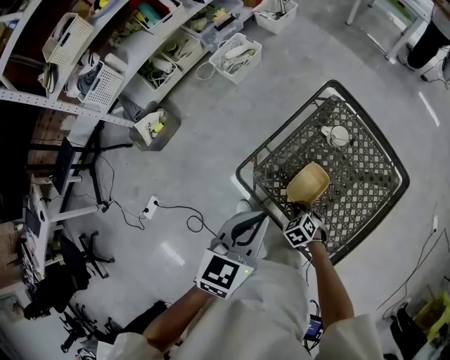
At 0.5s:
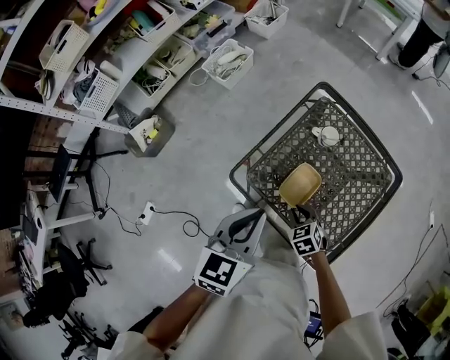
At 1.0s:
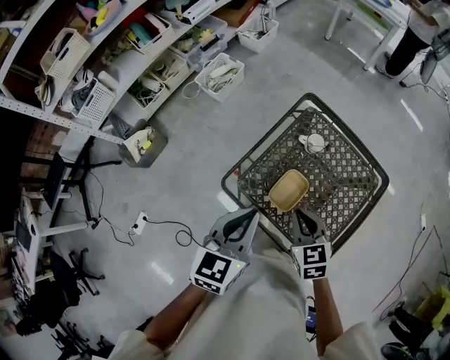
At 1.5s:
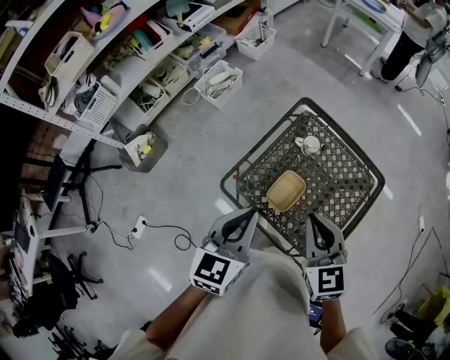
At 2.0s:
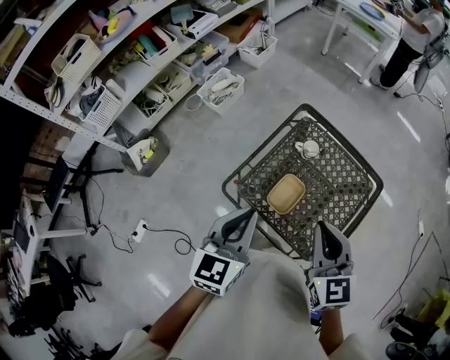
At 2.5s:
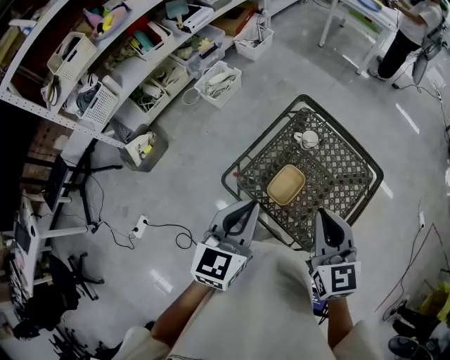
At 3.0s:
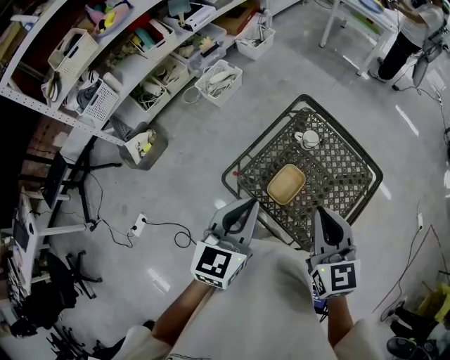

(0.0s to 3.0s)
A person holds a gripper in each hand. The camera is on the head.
0.0s - 1.5s: The left gripper heads upward, covering some 5 cm; the right gripper goes about 35 cm upward, and angles its fingers upward, by roughly 40 degrees.
1.5s - 3.0s: The grippers make only small movements.

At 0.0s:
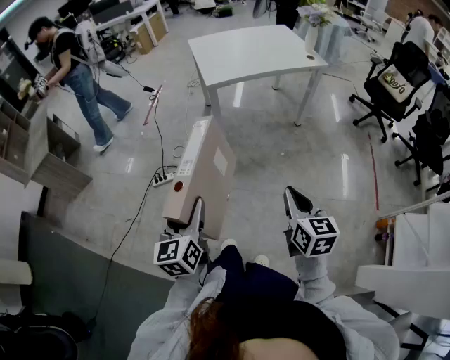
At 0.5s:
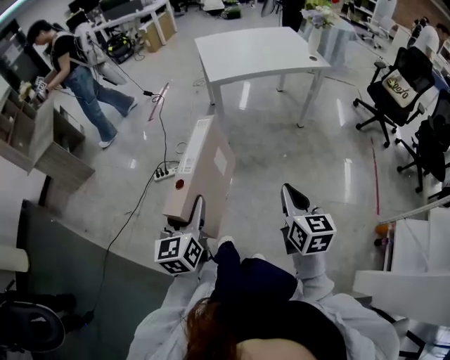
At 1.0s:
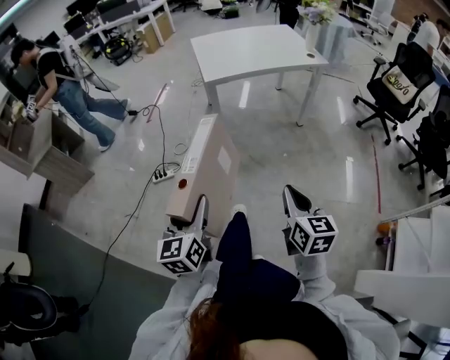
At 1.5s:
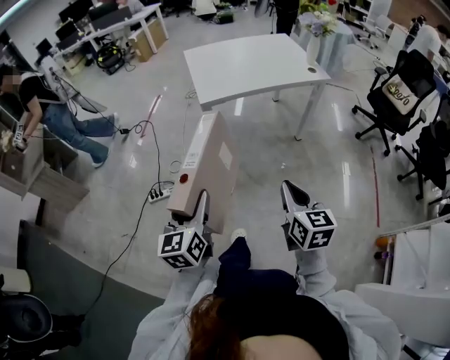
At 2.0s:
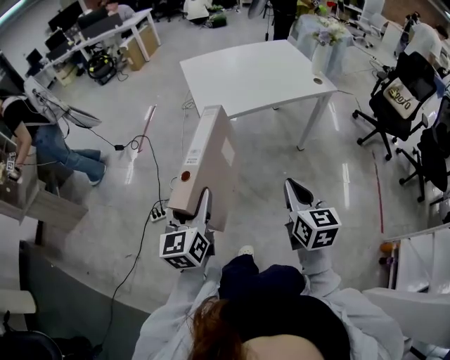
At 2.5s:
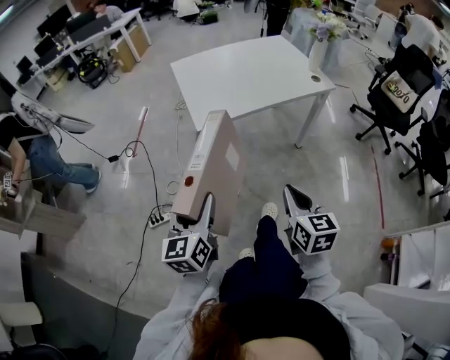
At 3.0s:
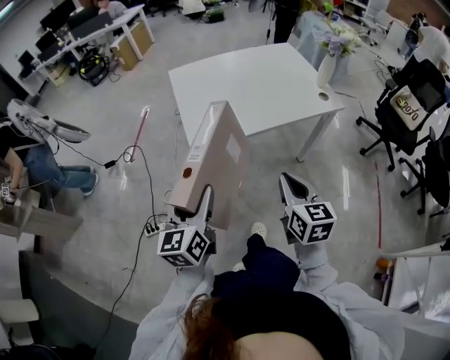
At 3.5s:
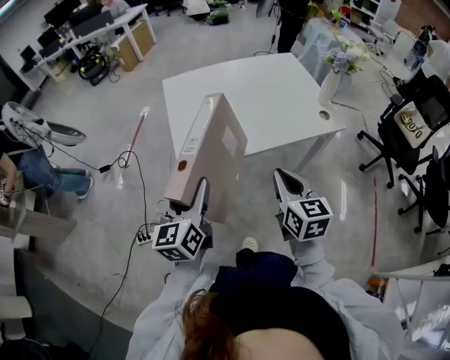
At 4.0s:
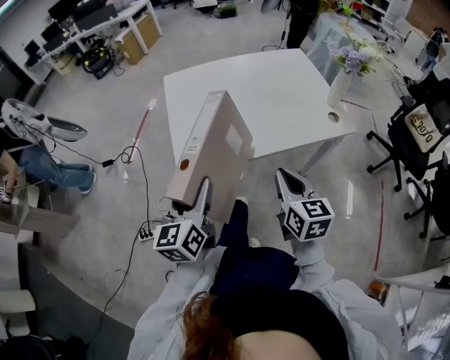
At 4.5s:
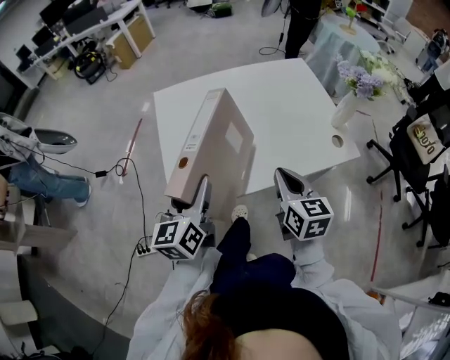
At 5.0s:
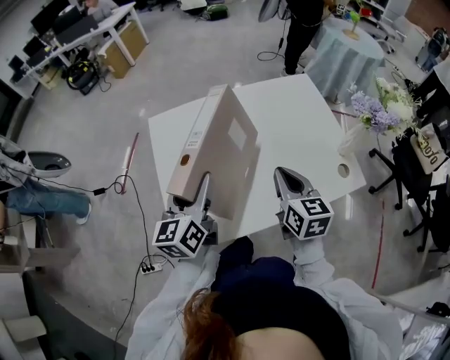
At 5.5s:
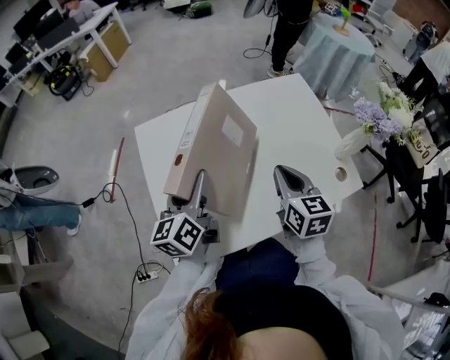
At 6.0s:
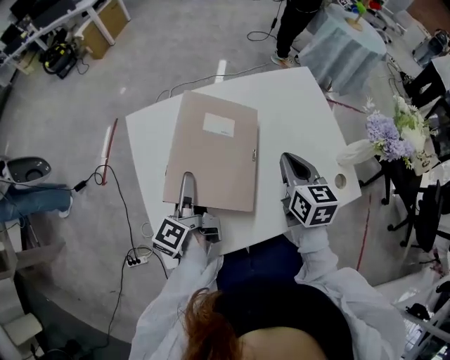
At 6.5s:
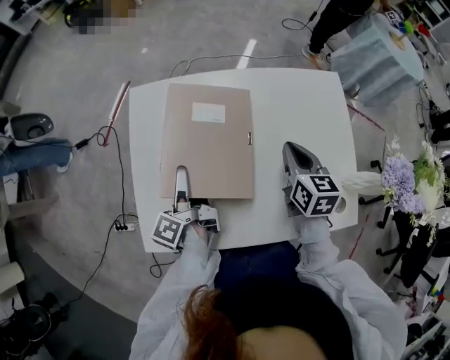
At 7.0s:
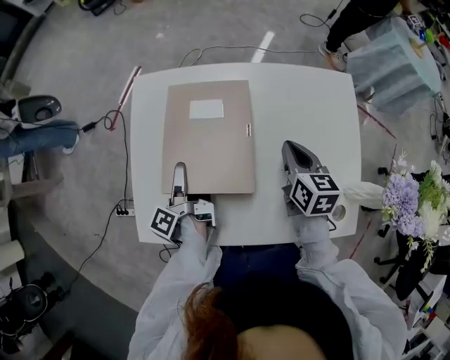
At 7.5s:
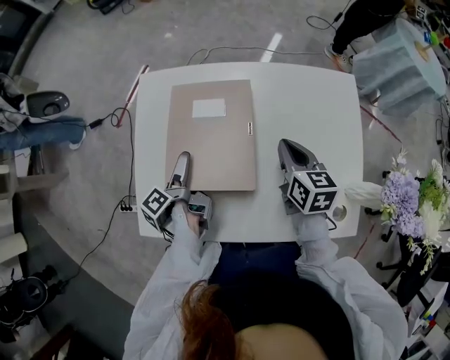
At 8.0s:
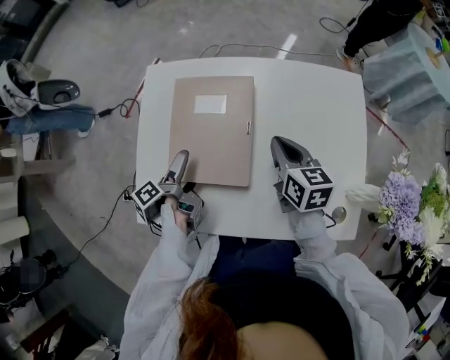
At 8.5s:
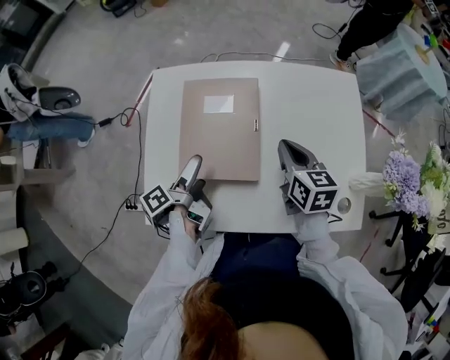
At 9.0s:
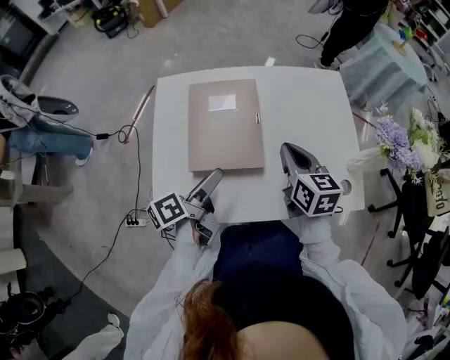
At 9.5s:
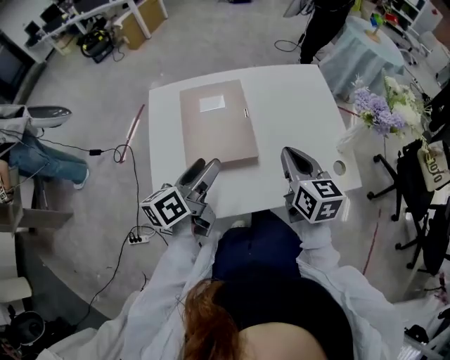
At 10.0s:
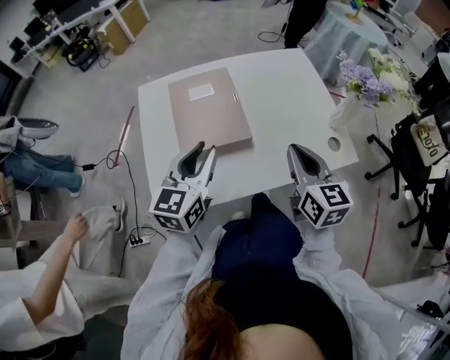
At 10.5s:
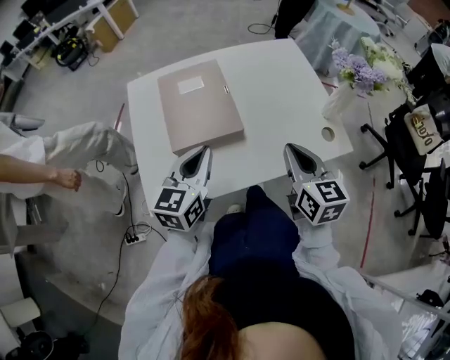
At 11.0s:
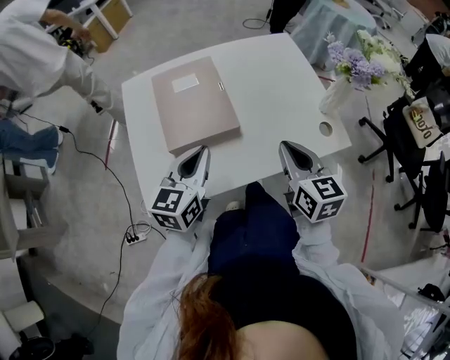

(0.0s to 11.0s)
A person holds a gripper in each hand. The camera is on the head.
0.0s - 2.0s: The two grippers go roughly 30 cm forward.
2.0s - 3.5s: Both grippers move forward, roughly 30 cm.
3.5s - 5.5s: The two grippers go some 40 cm forward.
5.5s - 7.5s: The left gripper shifts about 15 cm downward, rolls counterclockwise, seen from behind, by approximately 60 degrees, and opens up, while the right gripper ends up about 20 cm from where it was, and changes its angle by roughly 20 degrees.
7.5s - 9.0s: The two grippers go about 15 cm backward and upward. The left gripper changes its angle by about 40 degrees.
9.0s - 11.0s: The left gripper moves to the right, approximately 5 cm, twists about 60 degrees clockwise, seen from behind, and closes its fingers. The right gripper shifts some 15 cm backward and to the right.

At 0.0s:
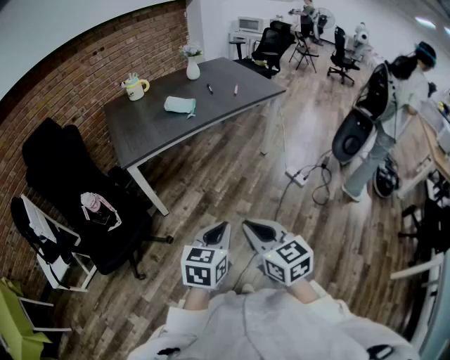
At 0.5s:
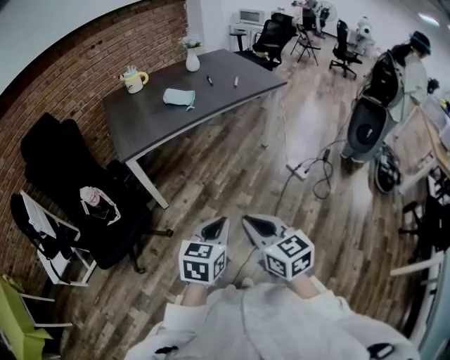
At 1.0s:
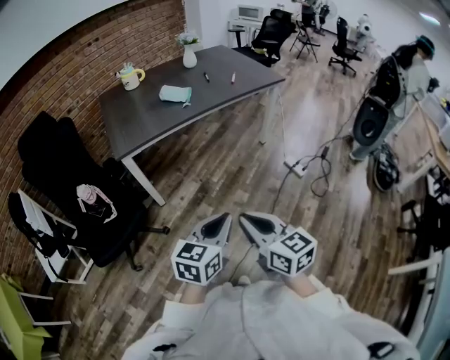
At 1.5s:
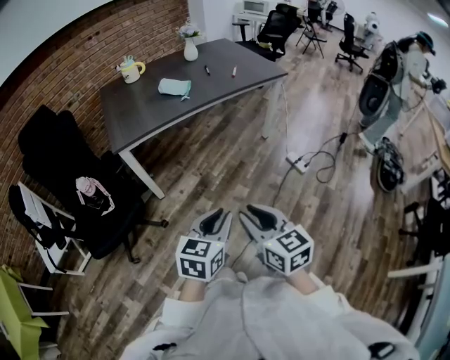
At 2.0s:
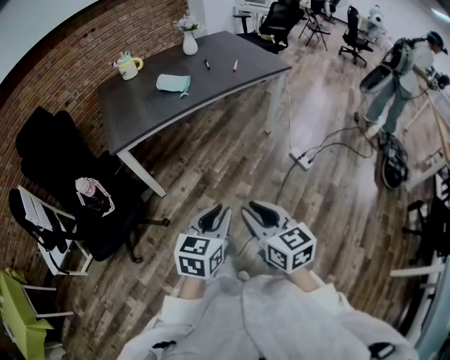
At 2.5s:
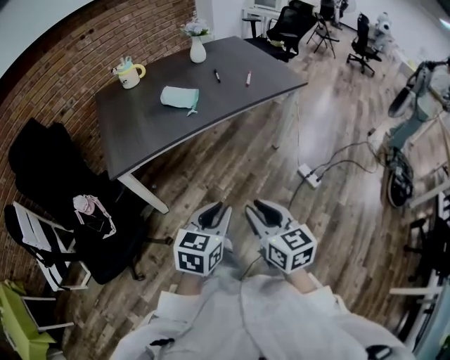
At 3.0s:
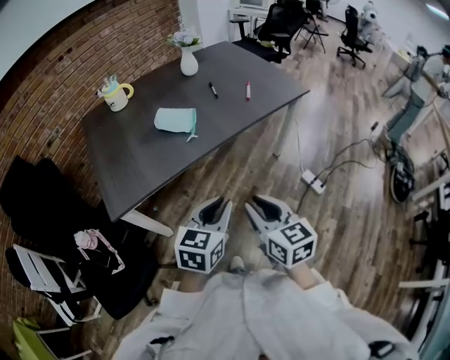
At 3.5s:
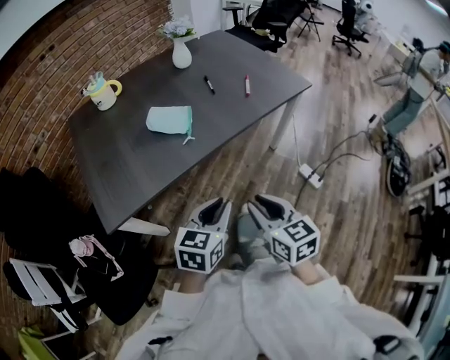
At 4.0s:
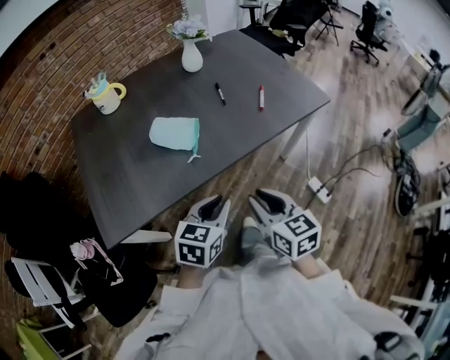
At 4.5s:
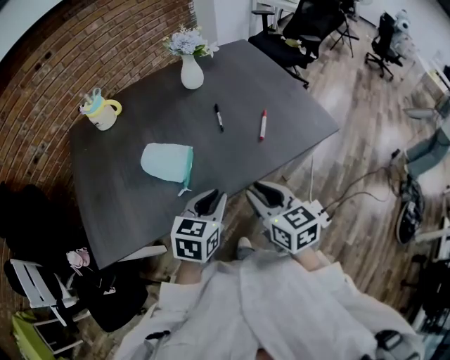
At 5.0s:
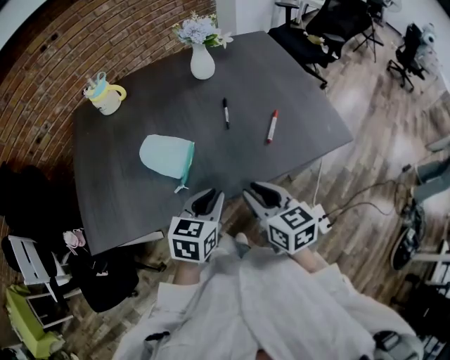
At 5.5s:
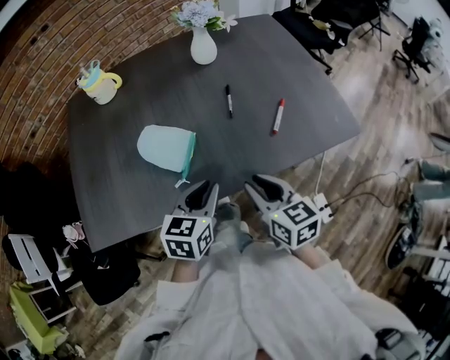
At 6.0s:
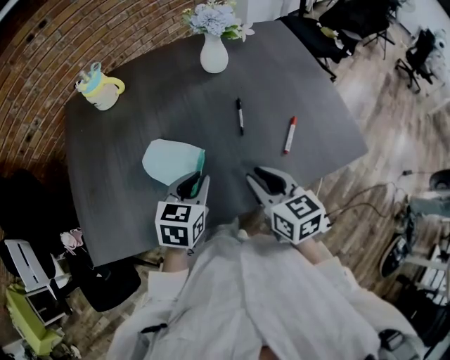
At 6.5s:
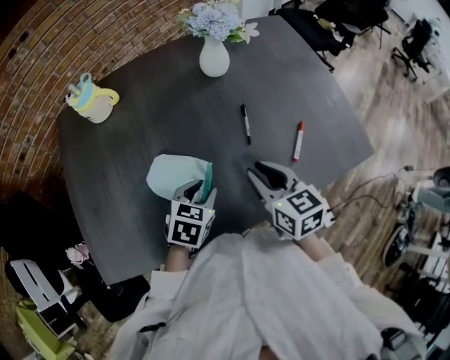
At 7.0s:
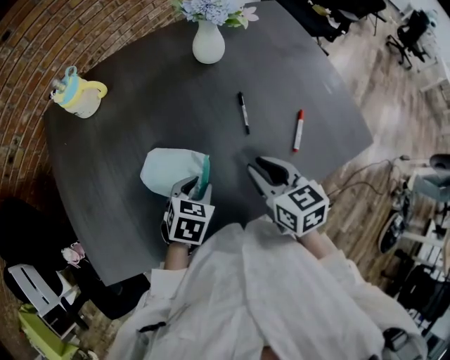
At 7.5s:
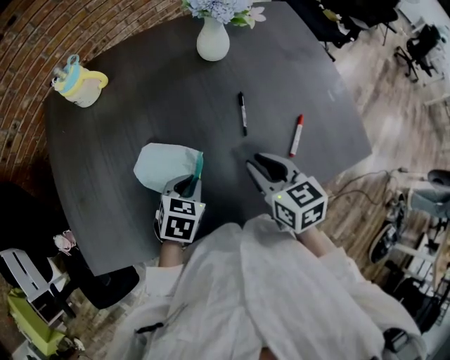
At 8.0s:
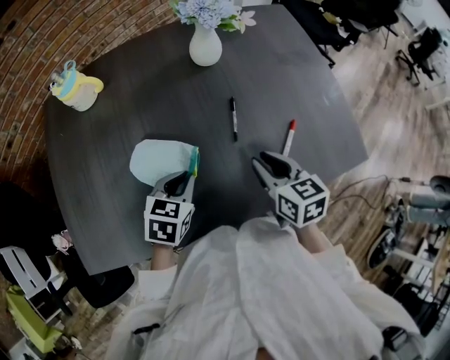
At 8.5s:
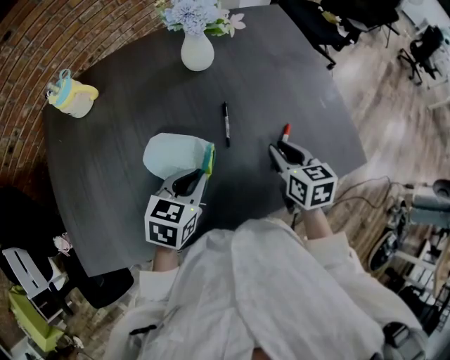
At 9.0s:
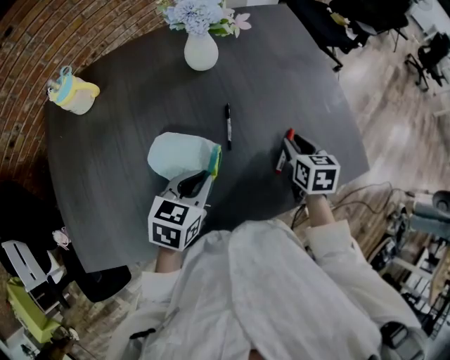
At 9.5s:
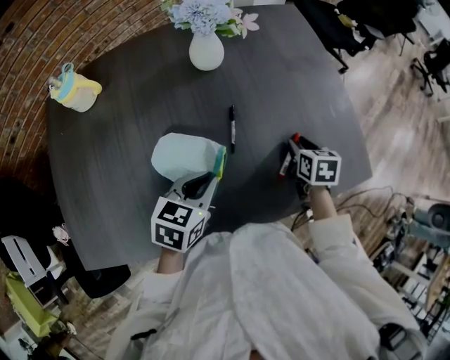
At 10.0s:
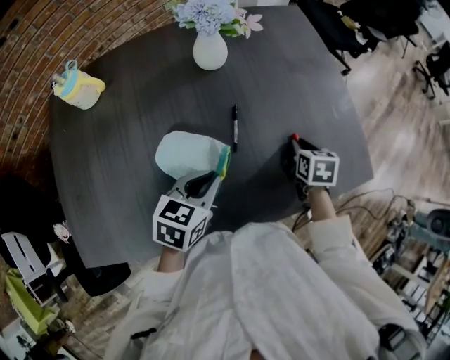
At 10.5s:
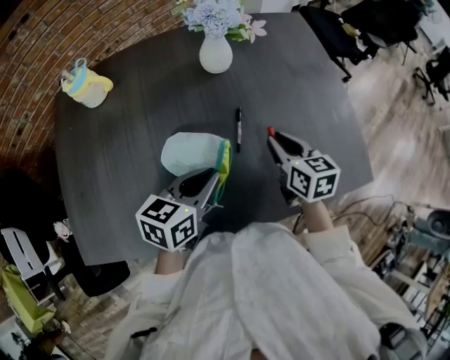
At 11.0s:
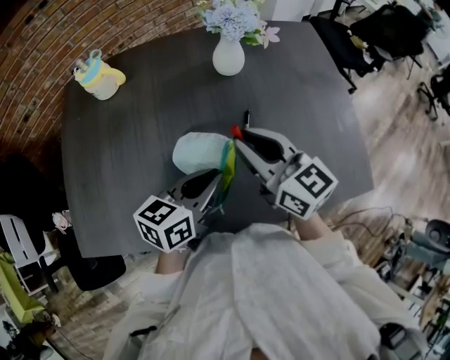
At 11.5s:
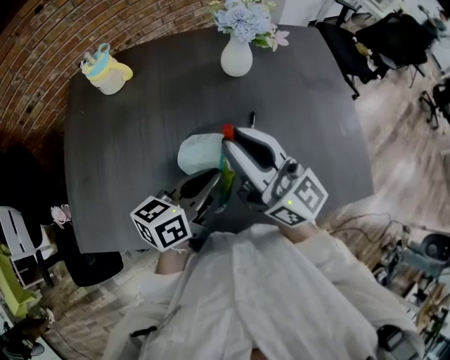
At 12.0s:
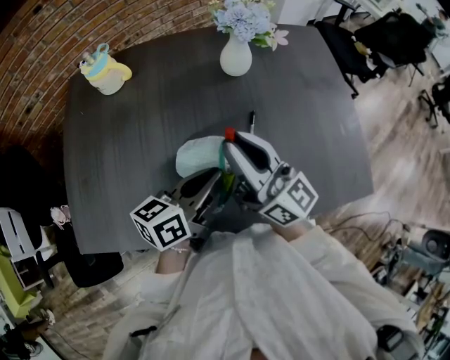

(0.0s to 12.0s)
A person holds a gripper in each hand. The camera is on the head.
0.0s - 2.0s: The left gripper goes roughly 5 cm forward, while the right gripper moves forward and to the right, approximately 10 cm.
2.0s - 4.0s: The two grippers travel together, forward, about 50 cm.
4.0s - 6.0s: Both grippers move forward, approximately 30 cm.
6.0s - 8.0s: The left gripper moves forward, roughly 5 cm. The right gripper travels forward by some 10 cm.
8.0s - 10.0s: The right gripper shifts approximately 20 cm to the right, forward and downward, and changes its angle by some 30 degrees. Meanwhile the left gripper goes roughly 10 cm to the right.
10.0s - 12.0s: The left gripper travels upward by some 10 cm, and swivels approximately 40 degrees, while the right gripper shifts by roughly 40 cm, and tilts its fingers some 70 degrees upward.

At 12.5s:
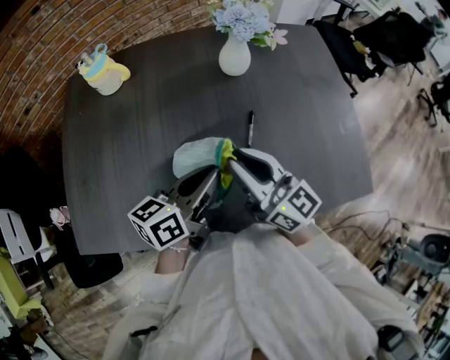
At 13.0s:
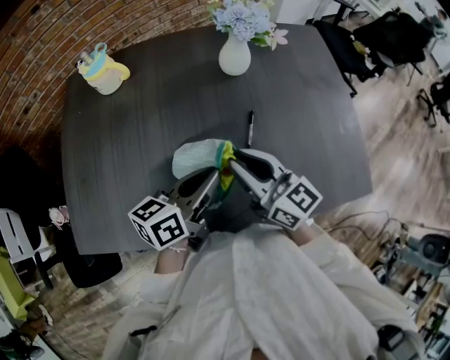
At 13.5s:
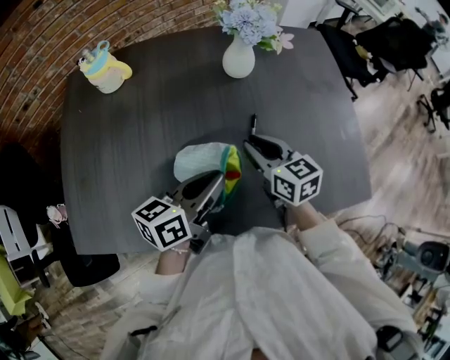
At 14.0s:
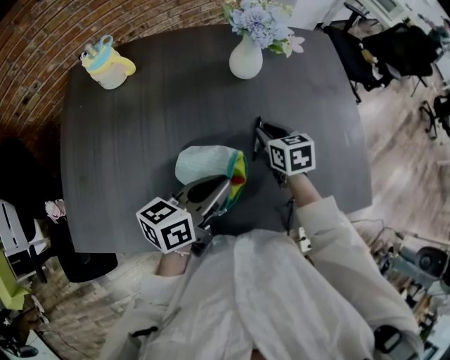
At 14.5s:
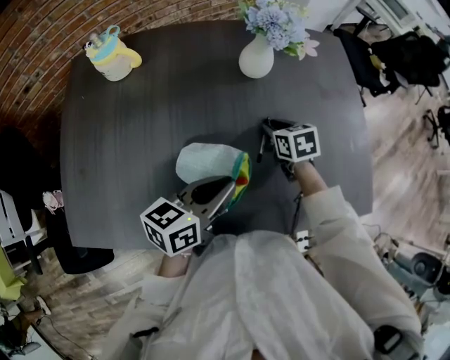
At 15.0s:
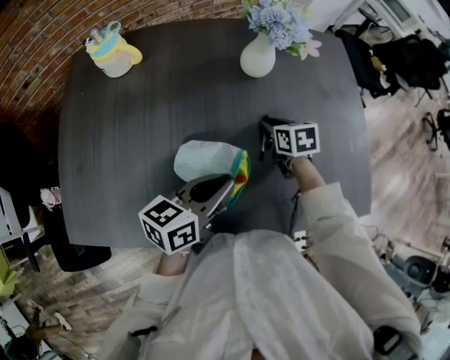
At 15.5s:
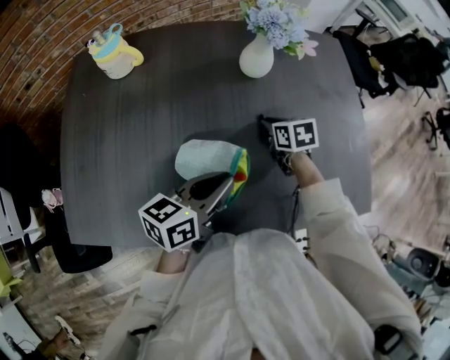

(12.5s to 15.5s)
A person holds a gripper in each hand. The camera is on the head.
12.5s - 14.0s: The right gripper is displaced downward, forward and to the right by about 25 cm, and tips its fingers downward by about 50 degrees.
14.0s - 15.5s: The grippers make only small movements.
